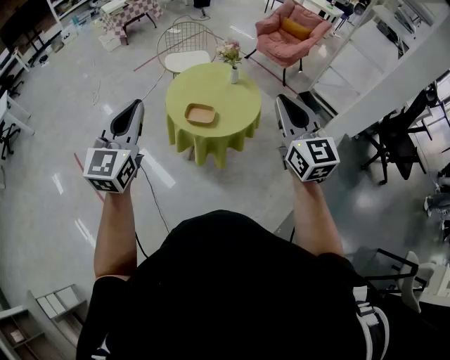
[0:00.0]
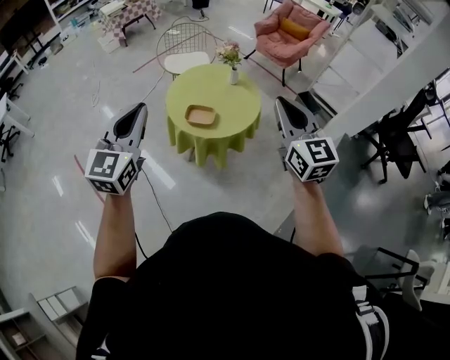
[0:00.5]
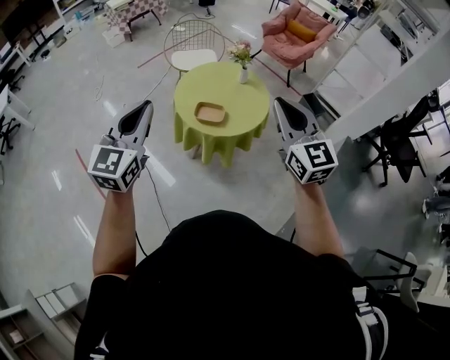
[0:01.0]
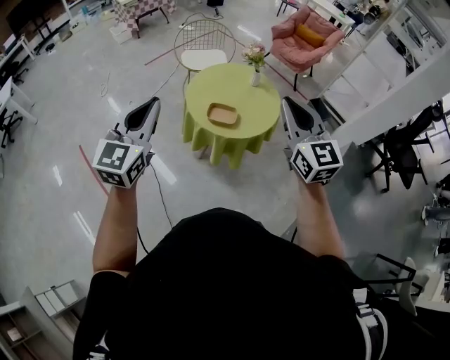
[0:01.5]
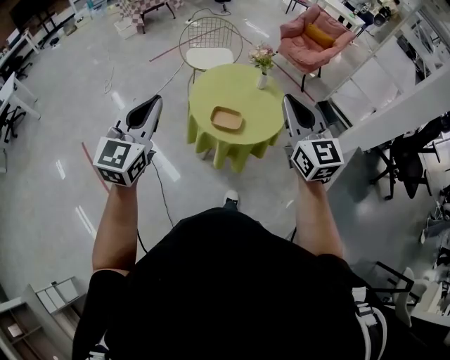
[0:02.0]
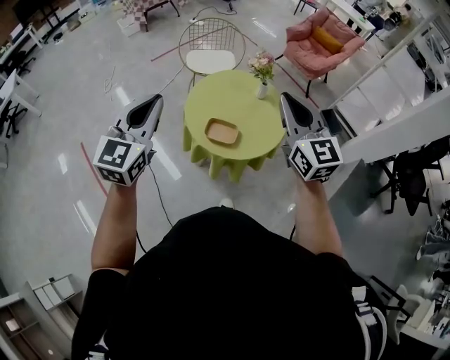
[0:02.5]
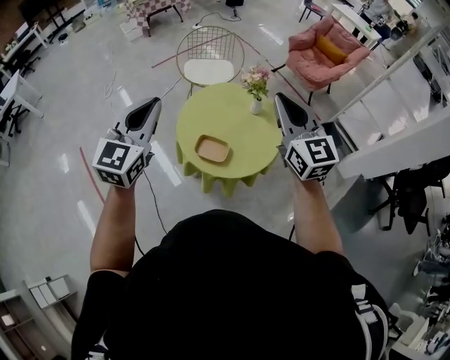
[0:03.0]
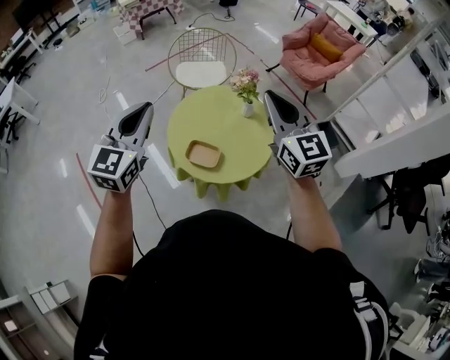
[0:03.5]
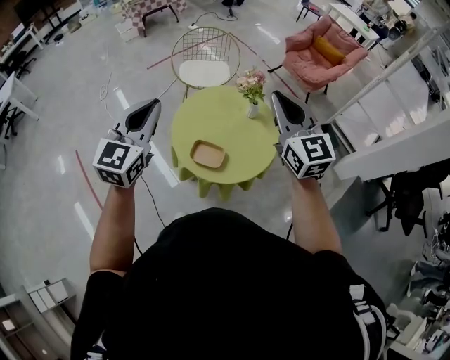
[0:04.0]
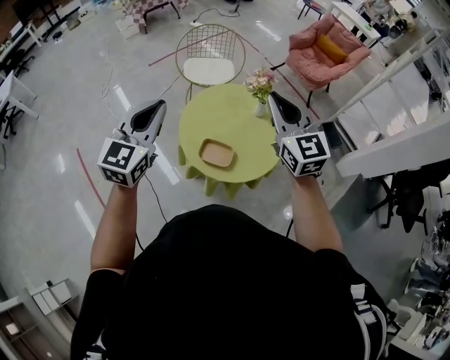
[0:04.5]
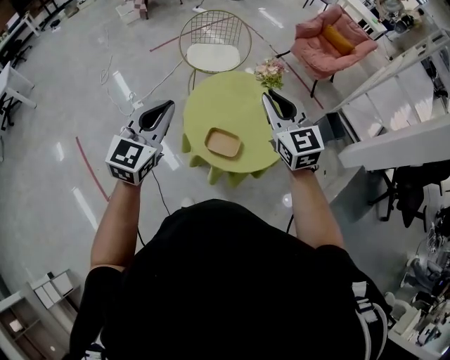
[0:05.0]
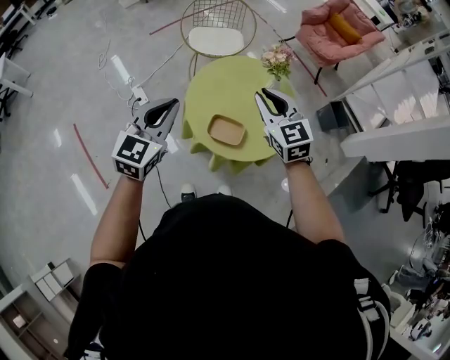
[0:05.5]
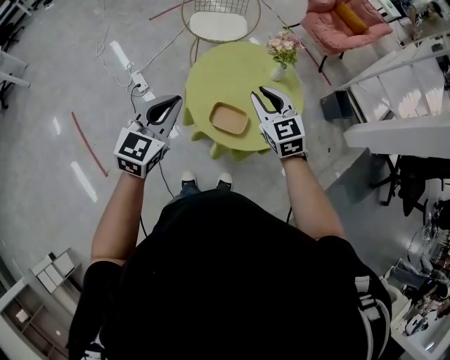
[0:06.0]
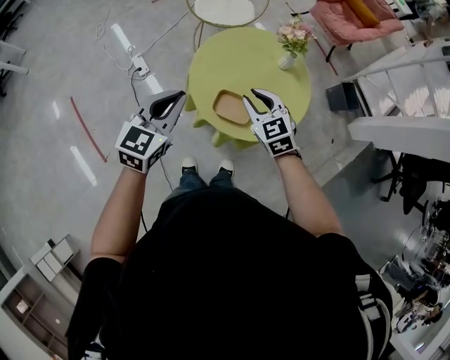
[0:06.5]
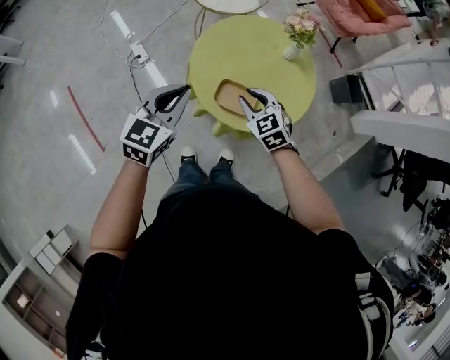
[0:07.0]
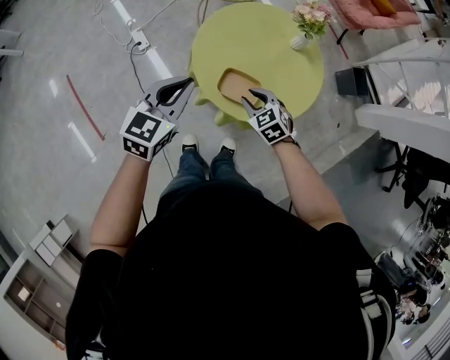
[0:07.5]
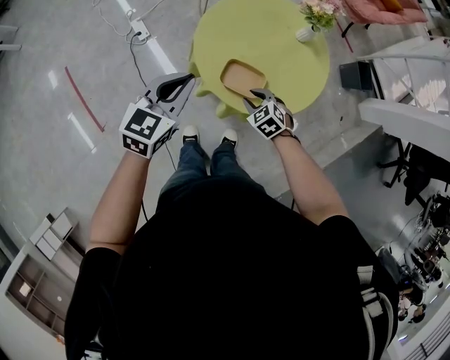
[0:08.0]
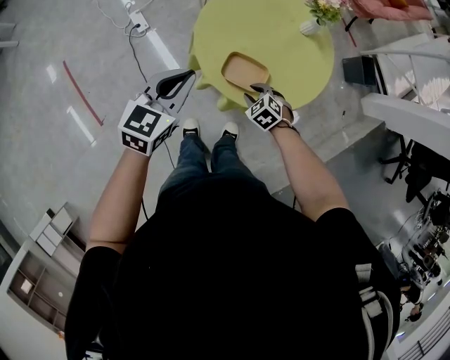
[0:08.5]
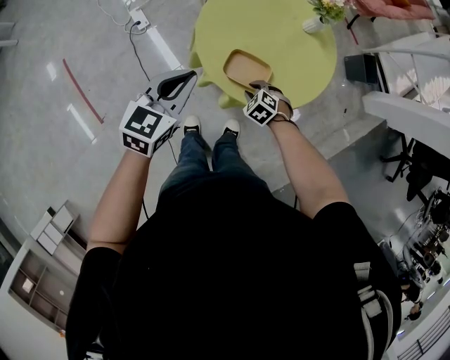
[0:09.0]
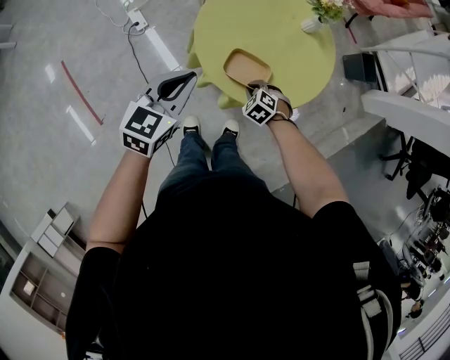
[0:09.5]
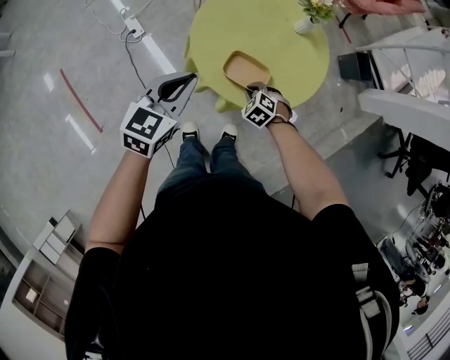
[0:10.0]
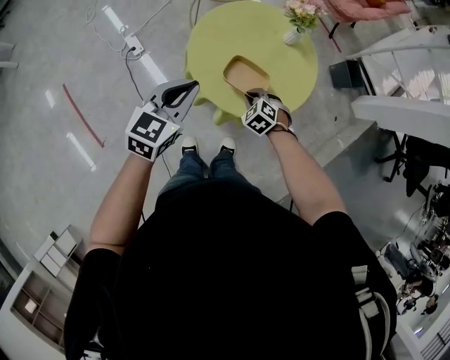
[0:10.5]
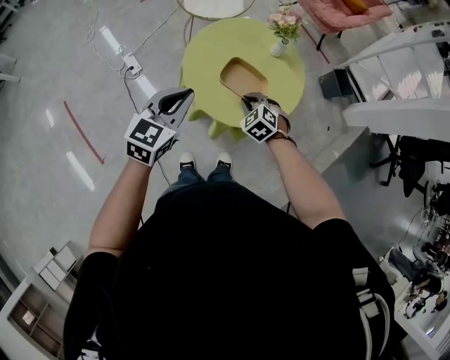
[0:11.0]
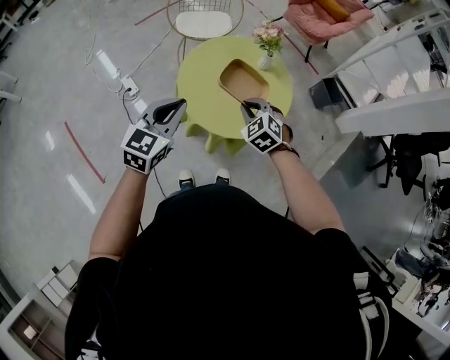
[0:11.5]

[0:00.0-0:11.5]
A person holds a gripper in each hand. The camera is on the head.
0:00.0 to 0:02.0: Both grippers move to the left and forward, some 10 cm.
0:02.0 to 0:04.0: The left gripper travels forward and to the right by about 25 cm, while the right gripper goes roughly 25 cm forward.
0:04.0 to 0:06.0: The right gripper moves downward and to the left, some 25 cm, and swivels roughly 30 degrees. Meanwhile the left gripper heads downward, covering approximately 15 cm.
0:06.0 to 0:07.5: The right gripper is displaced downward by roughly 25 cm, and swivels about 30 degrees. The left gripper goes some 10 cm downward.
0:07.5 to 0:09.5: The left gripper moves about 5 cm, while the right gripper travels downward by some 15 cm, turns by approximately 20 degrees, and closes up.
0:09.5 to 0:11.5: The left gripper shifts roughly 10 cm upward. Meanwhile the right gripper shifts some 25 cm upward, and changes its angle by some 30 degrees.

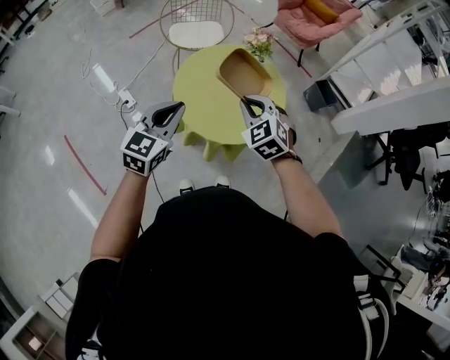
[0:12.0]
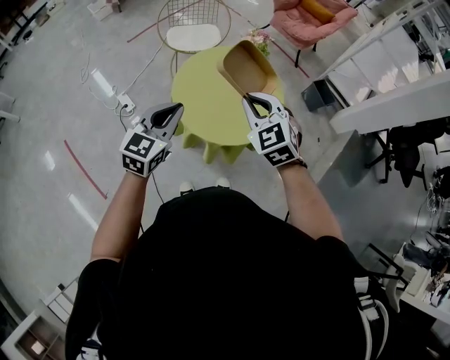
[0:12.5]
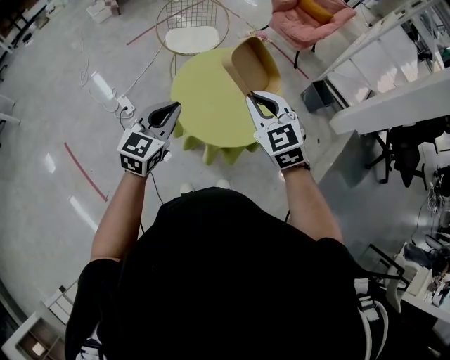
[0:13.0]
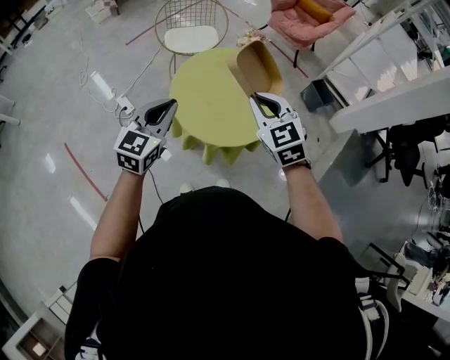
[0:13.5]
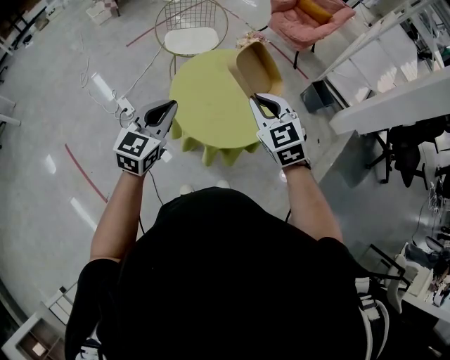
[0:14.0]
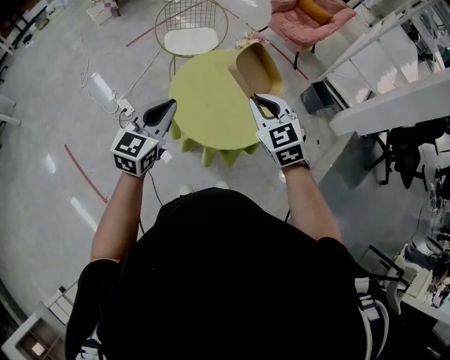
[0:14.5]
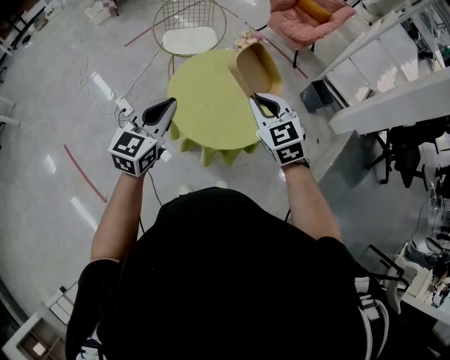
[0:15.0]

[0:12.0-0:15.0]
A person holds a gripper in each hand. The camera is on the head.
0:12.0 to 0:13.5: The right gripper moves upward, roughly 5 cm.
0:13.5 to 0:15.0: The grippers stay close to where they were, moving slightly.

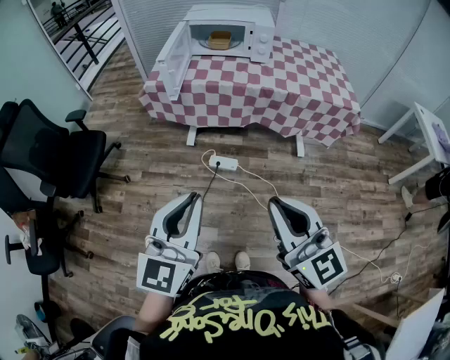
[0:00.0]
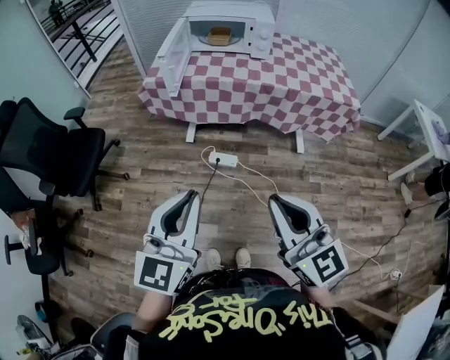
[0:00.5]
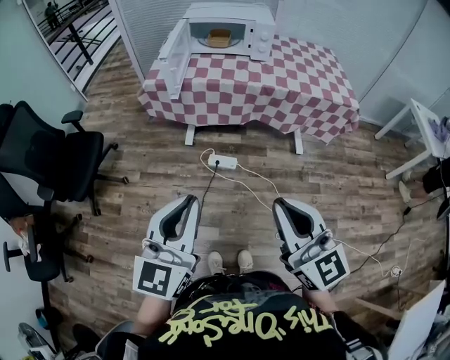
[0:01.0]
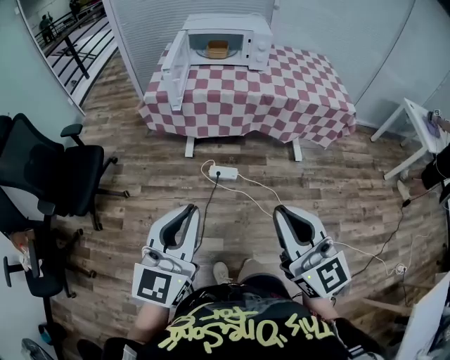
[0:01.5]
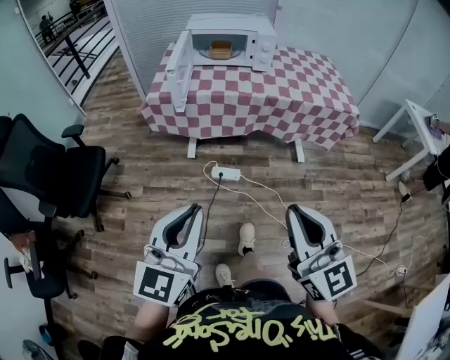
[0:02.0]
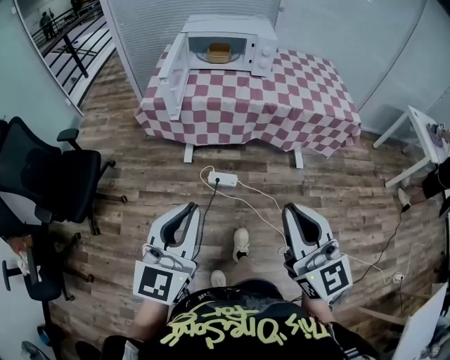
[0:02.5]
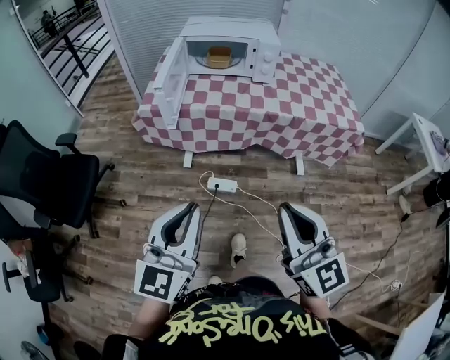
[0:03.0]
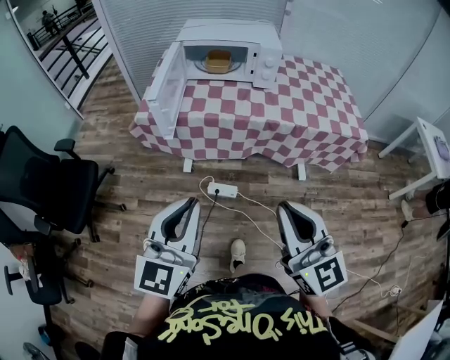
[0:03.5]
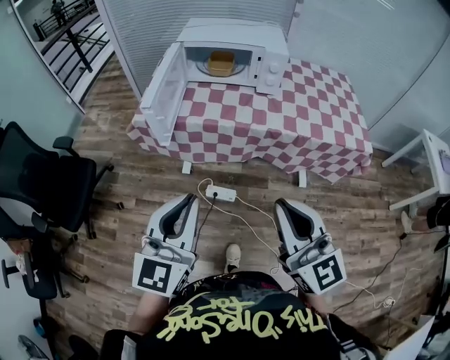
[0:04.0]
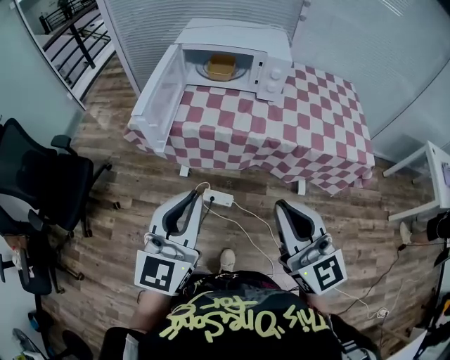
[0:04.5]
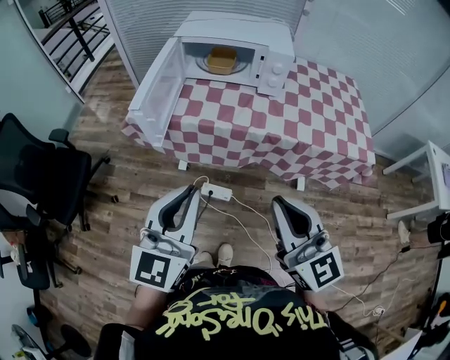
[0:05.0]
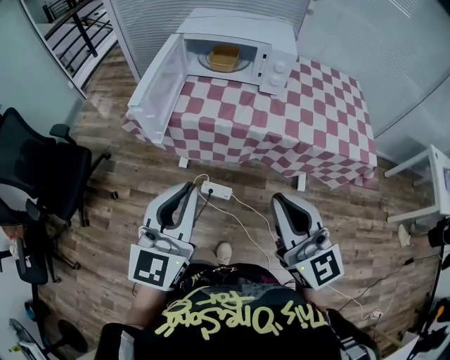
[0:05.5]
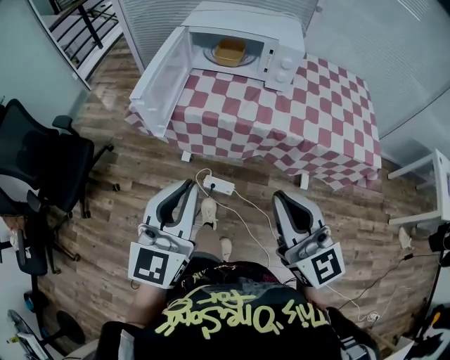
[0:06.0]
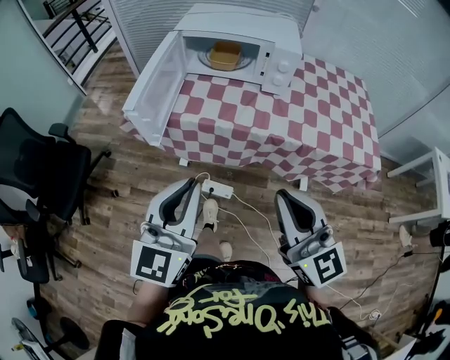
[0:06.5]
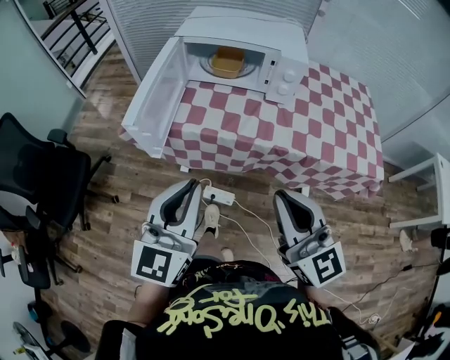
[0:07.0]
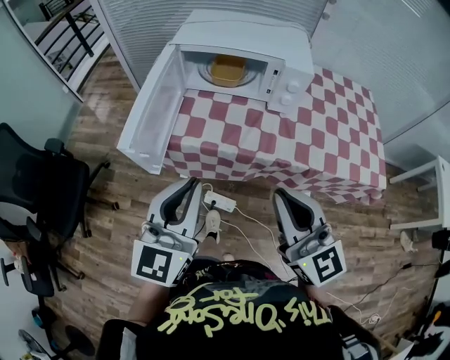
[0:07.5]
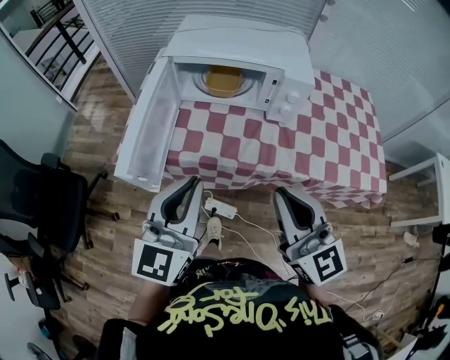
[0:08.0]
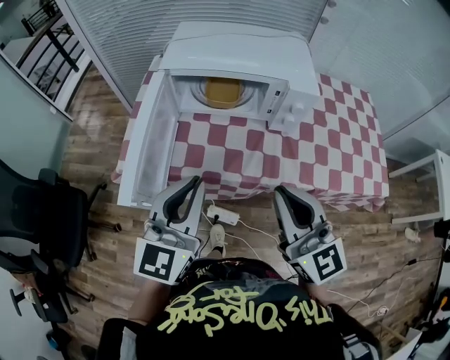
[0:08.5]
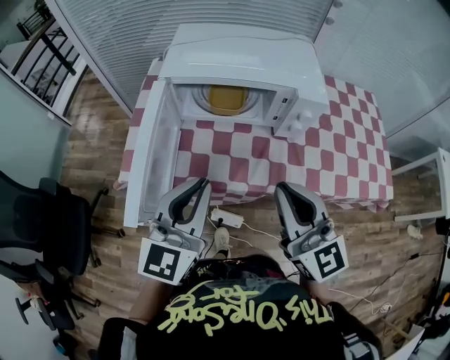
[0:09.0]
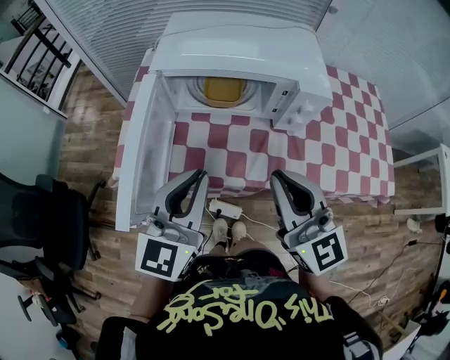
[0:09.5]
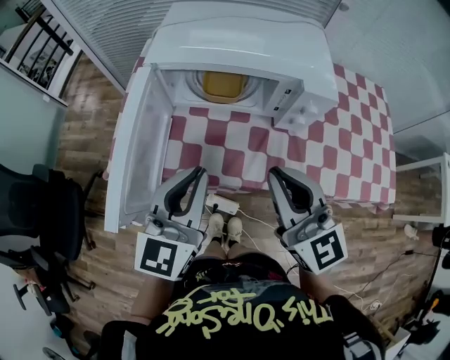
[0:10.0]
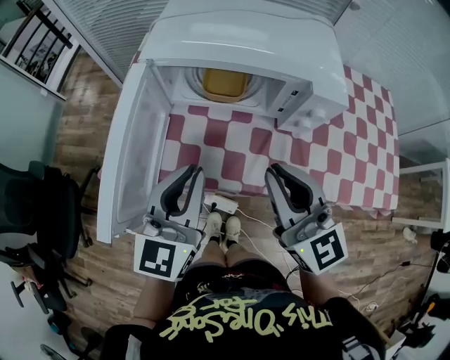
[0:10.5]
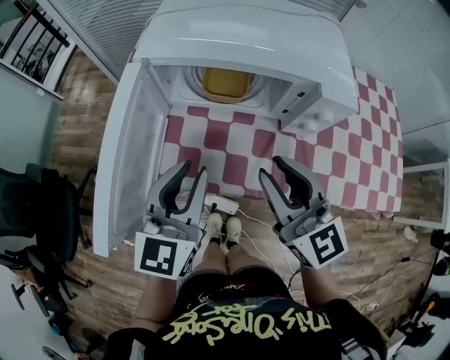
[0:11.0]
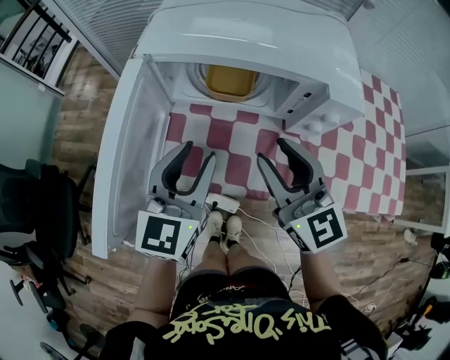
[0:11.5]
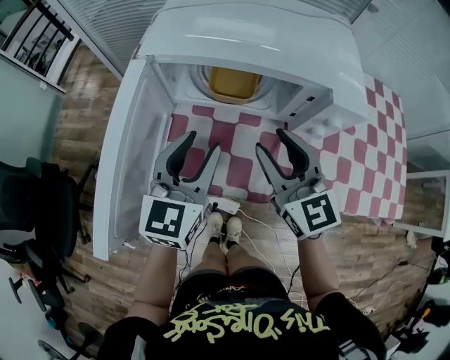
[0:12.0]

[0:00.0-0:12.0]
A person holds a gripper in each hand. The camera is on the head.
0:00.0 to 0:02.0: The left gripper is displaced to the left by roughly 5 cm.
0:02.0 to 0:04.0: The grippers both shift forward by about 20 cm.
0:04.0 to 0:06.0: The right gripper travels forward by some 5 cm. Meanwhile the left gripper moves some 5 cm.
0:06.0 to 0:08.0: Both grippers move forward, about 20 cm.
0:08.0 to 0:10.0: Both grippers travel together forward, about 10 cm.
0:10.0 to 0:12.0: Both grippers move forward and downward, approximately 15 cm. The right gripper opens up; the left gripper opens.
